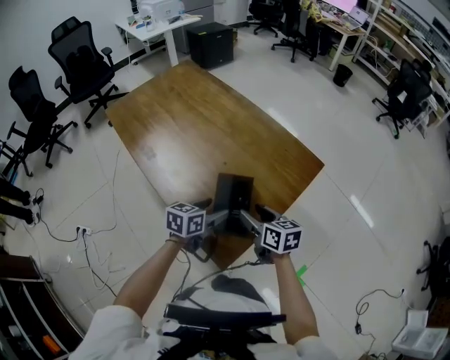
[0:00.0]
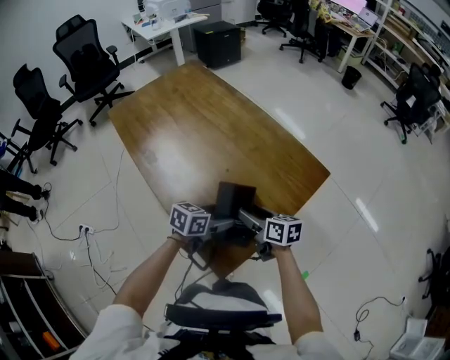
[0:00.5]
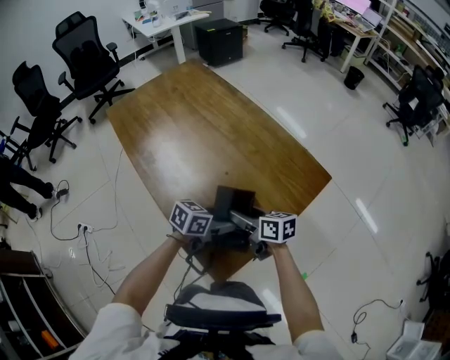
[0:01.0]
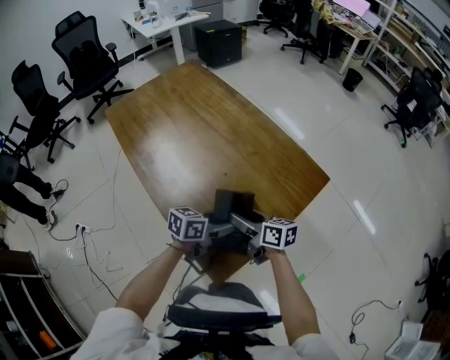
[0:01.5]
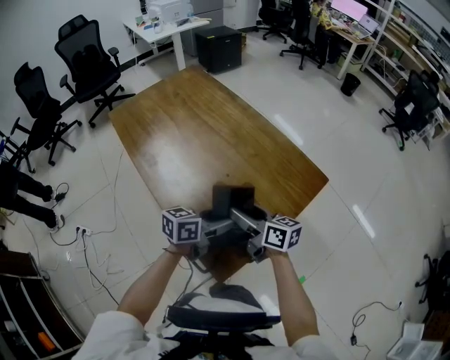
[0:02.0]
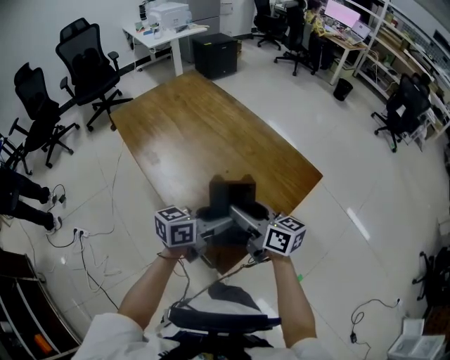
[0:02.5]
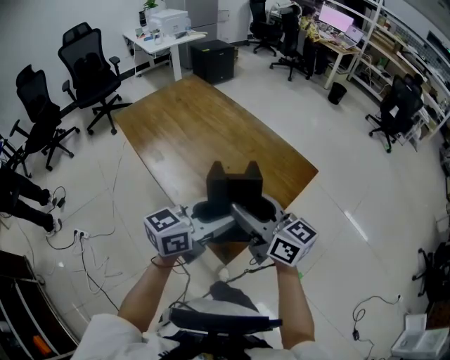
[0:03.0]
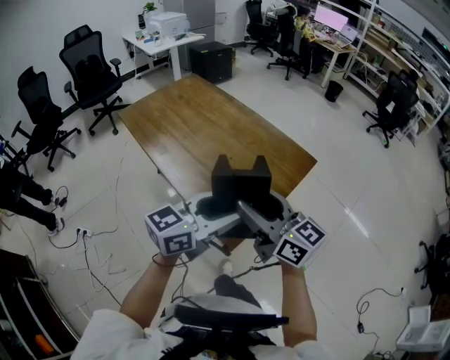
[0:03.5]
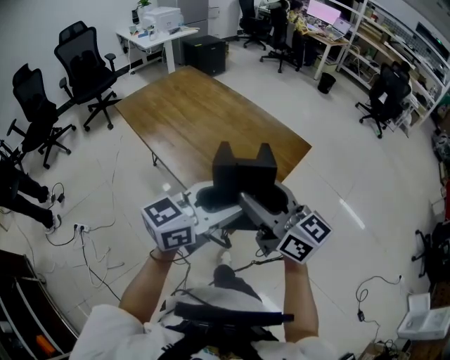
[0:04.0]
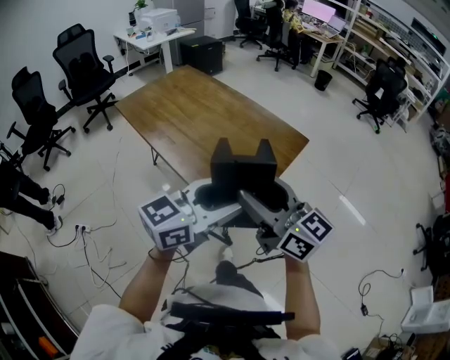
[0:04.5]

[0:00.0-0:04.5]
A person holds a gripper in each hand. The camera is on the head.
0:00.0 to 0:02.0: The left gripper heads upward, covering some 5 cm, while the right gripper ends up about 10 cm from where it was, and swivels roughly 20 degrees.
0:02.0 to 0:04.5: The right gripper goes roughly 30 cm upward and backward, and rotates approximately 40 degrees, while the left gripper moves backward and upward, approximately 30 cm, and rotates some 30 degrees.

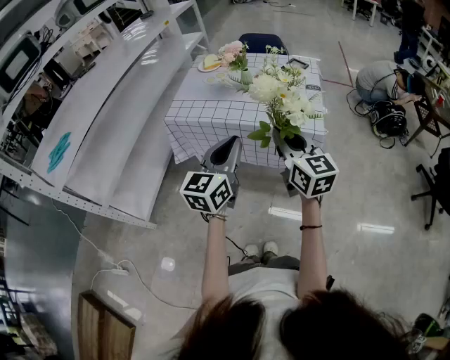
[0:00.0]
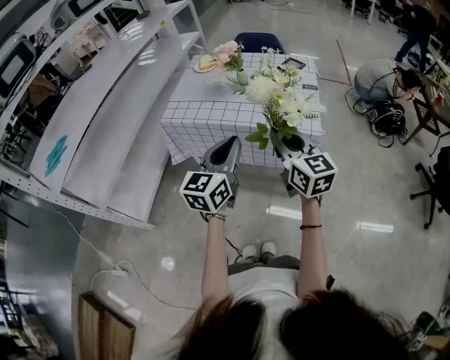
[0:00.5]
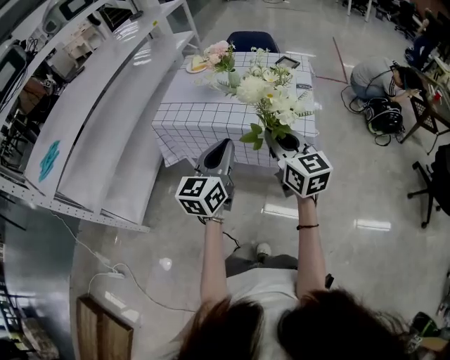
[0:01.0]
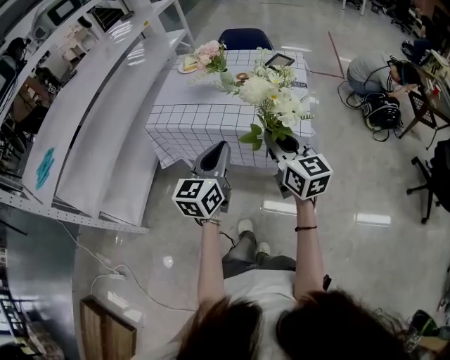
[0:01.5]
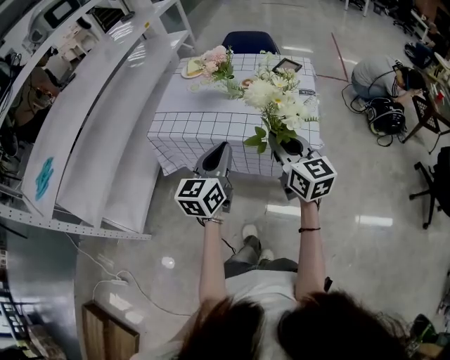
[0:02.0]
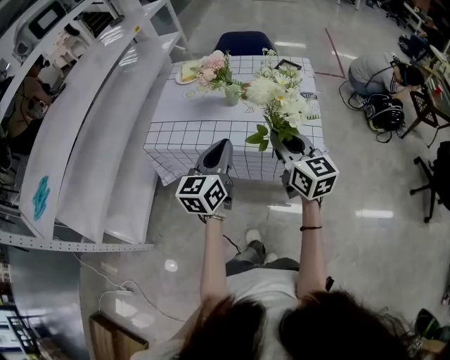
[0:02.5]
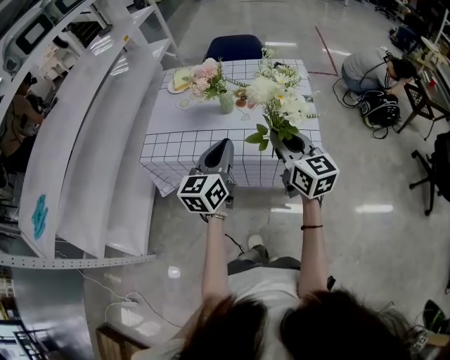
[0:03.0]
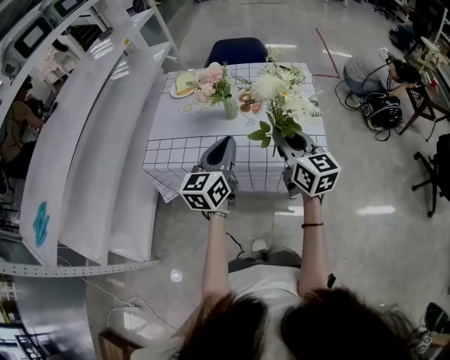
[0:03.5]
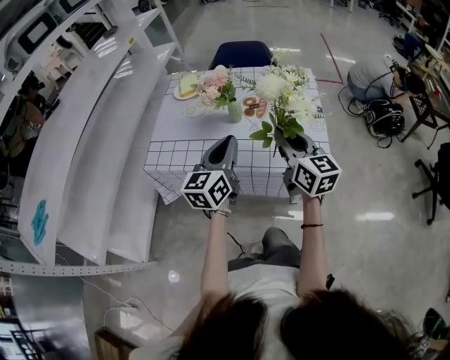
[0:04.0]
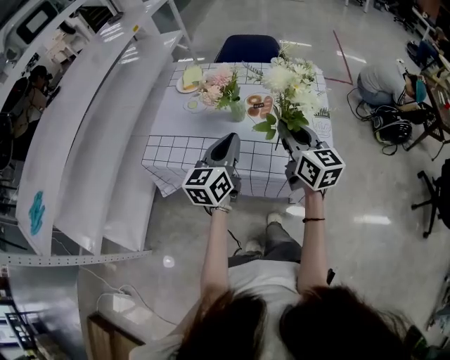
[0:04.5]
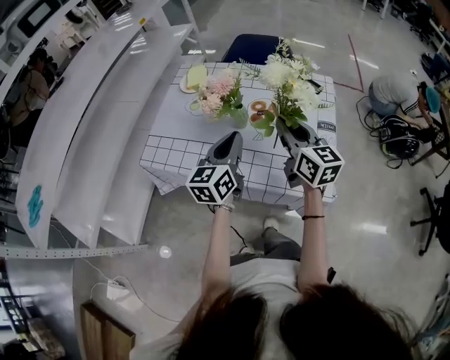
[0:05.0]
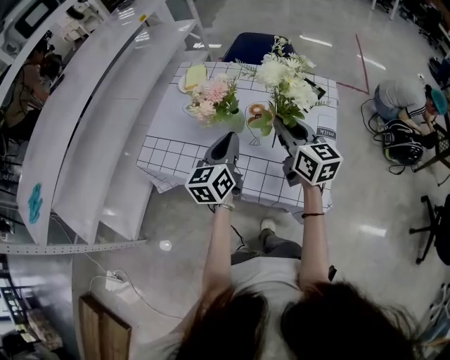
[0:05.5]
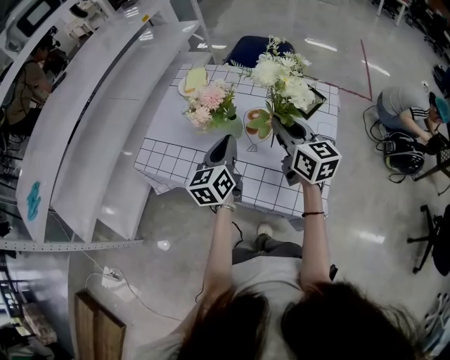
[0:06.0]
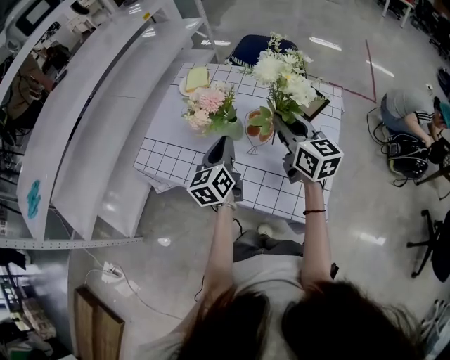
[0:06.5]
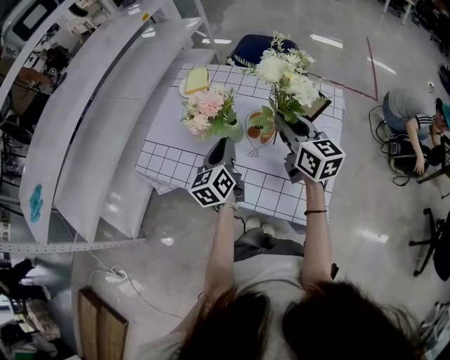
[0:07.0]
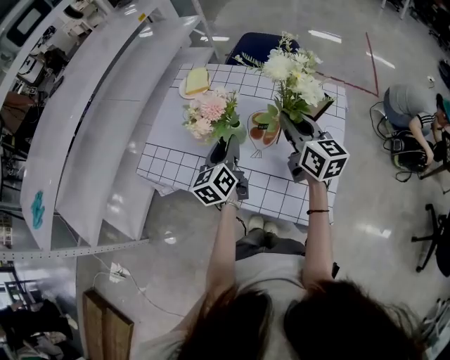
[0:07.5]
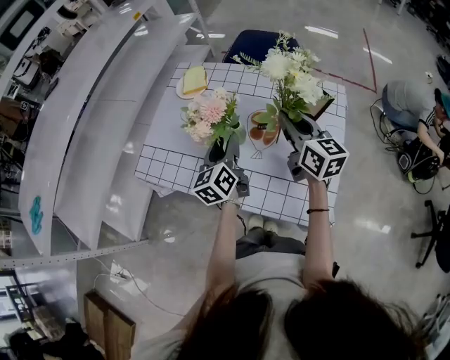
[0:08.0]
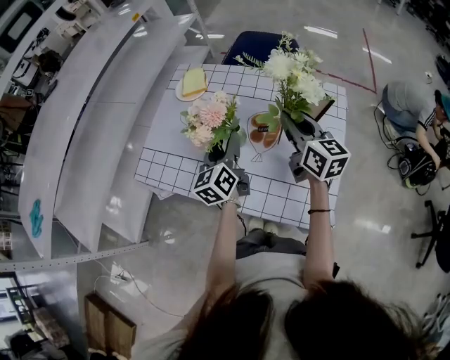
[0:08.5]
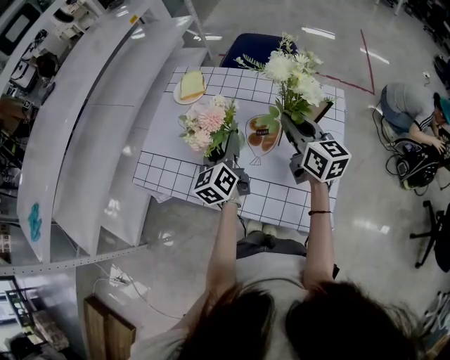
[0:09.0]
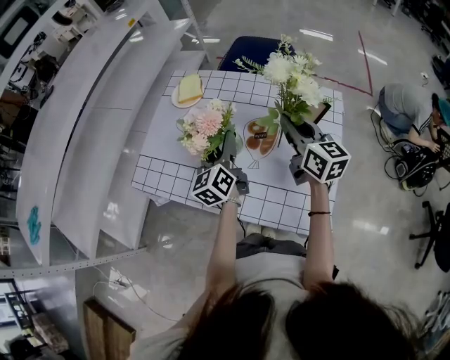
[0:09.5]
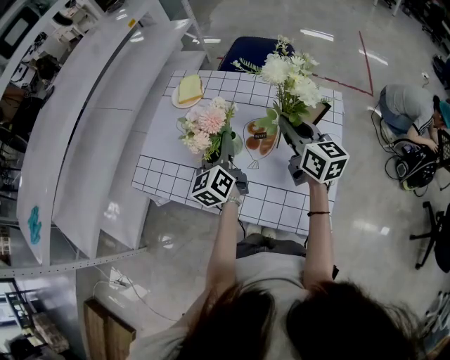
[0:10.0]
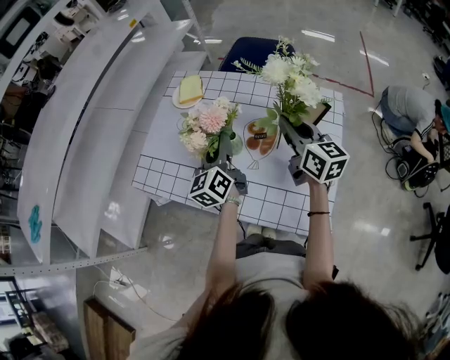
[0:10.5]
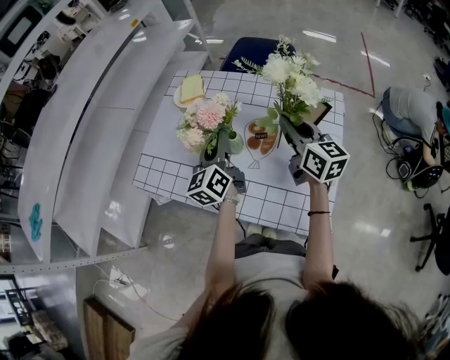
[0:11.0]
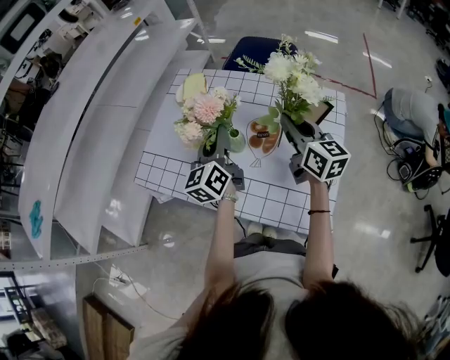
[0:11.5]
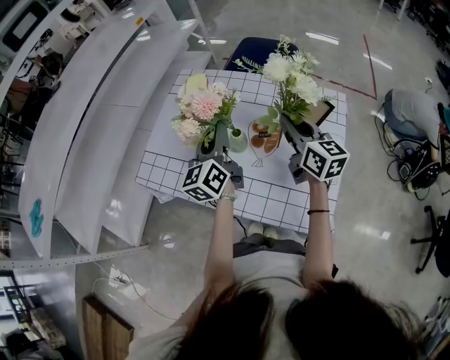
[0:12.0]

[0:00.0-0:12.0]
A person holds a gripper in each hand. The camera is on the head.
0:00.0 to 0:02.0: Both grippers travel together forward, some 10 cm.
0:02.0 to 0:04.0: Both grippers travel together forward, about 15 cm.
0:04.0 to 0:06.0: The right gripper is displaced forward by some 20 cm. The left gripper moves forward and downward, about 15 cm, and changes its angle by about 20 degrees.
0:06.0 to 0:08.0: The grippers both shift forward by approximately 5 cm. The left gripper opens up.
0:08.0 to 0:10.0: There are only small adjustments of the grippers.
0:10.0 to 0:12.0: The left gripper is displaced upward by some 5 cm.

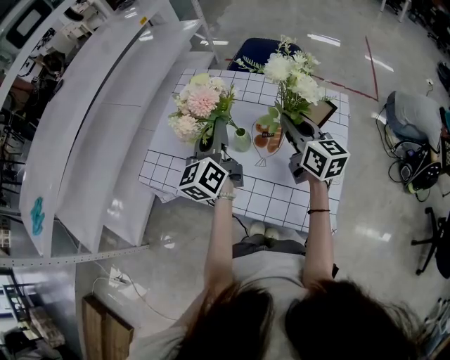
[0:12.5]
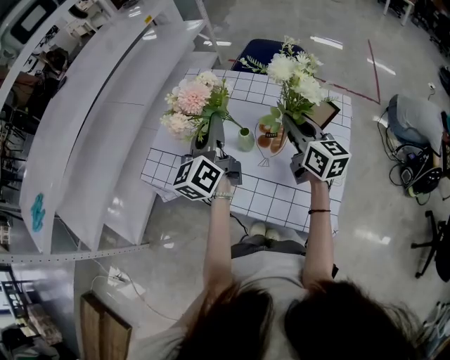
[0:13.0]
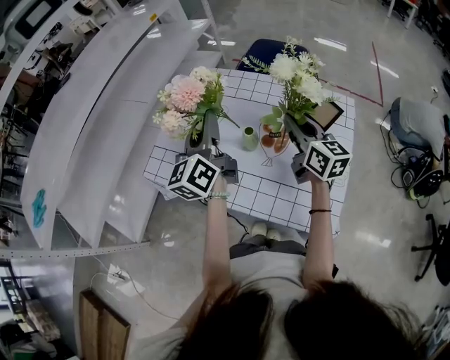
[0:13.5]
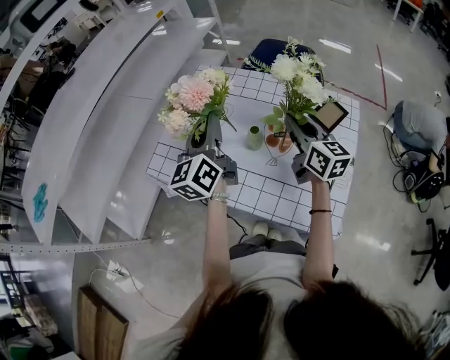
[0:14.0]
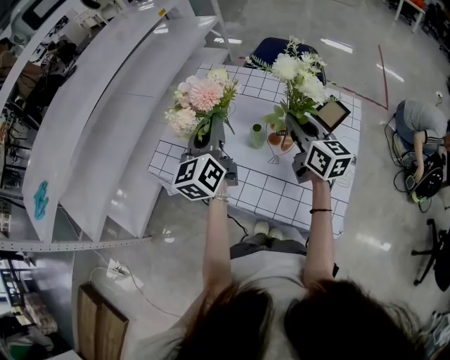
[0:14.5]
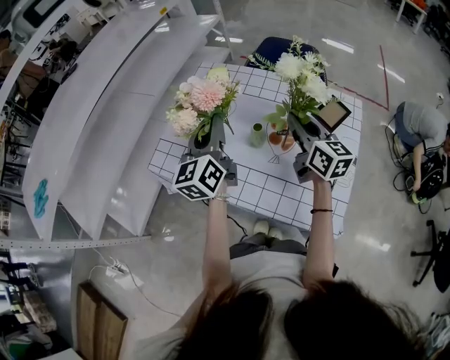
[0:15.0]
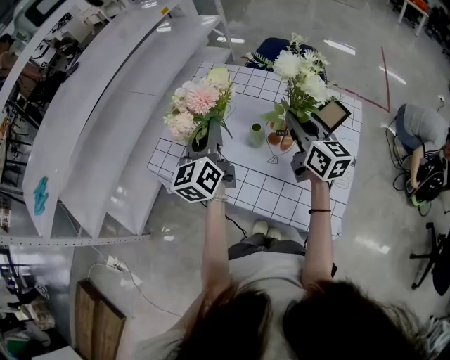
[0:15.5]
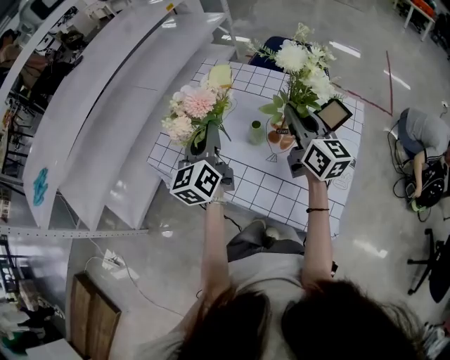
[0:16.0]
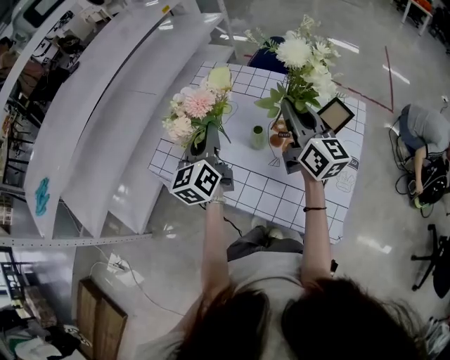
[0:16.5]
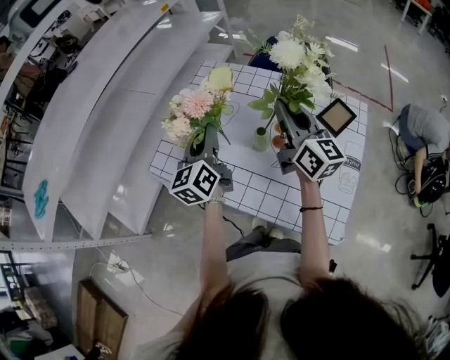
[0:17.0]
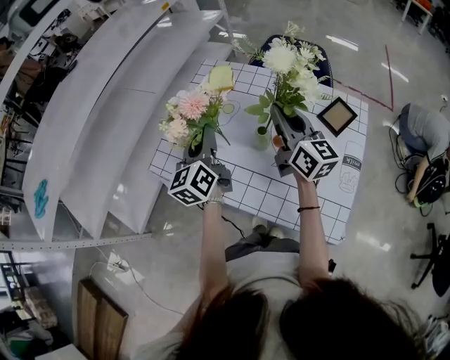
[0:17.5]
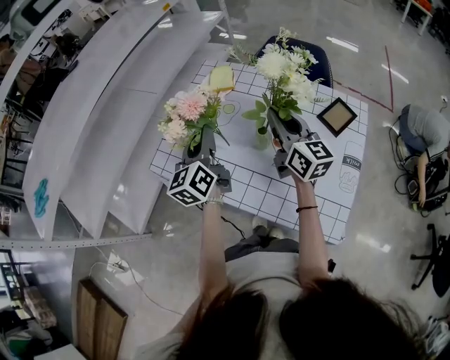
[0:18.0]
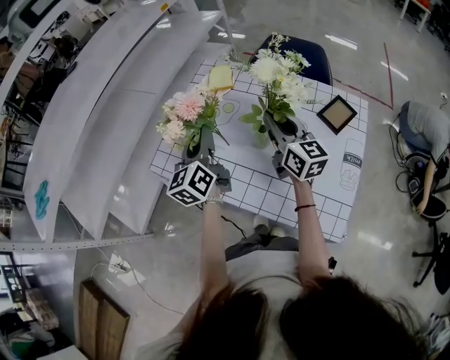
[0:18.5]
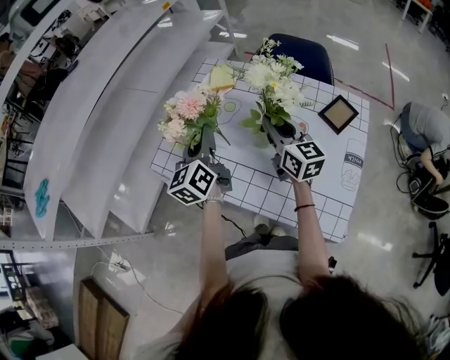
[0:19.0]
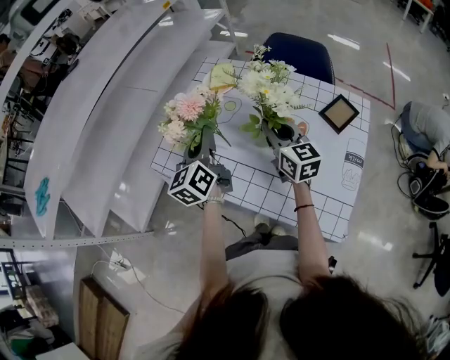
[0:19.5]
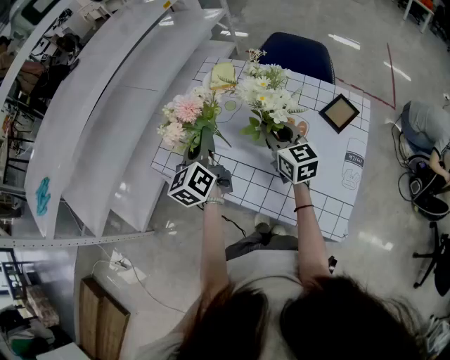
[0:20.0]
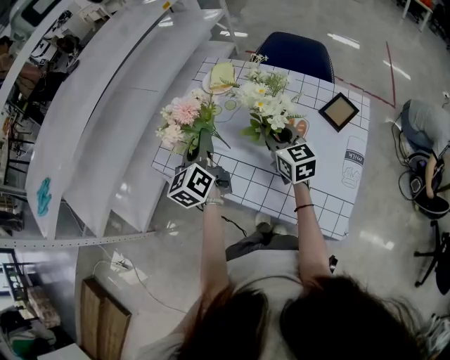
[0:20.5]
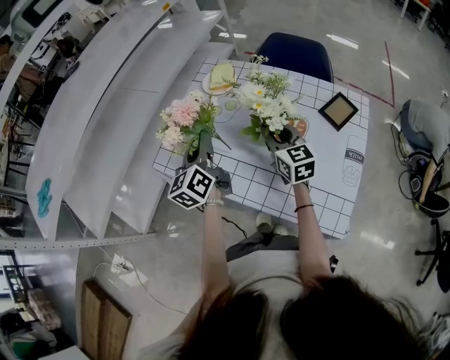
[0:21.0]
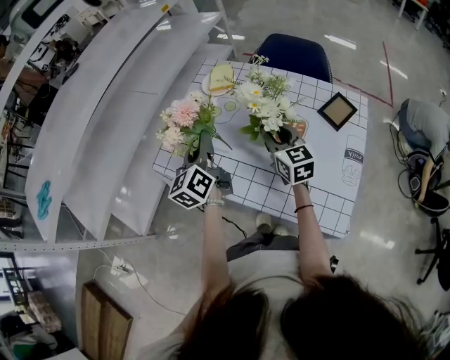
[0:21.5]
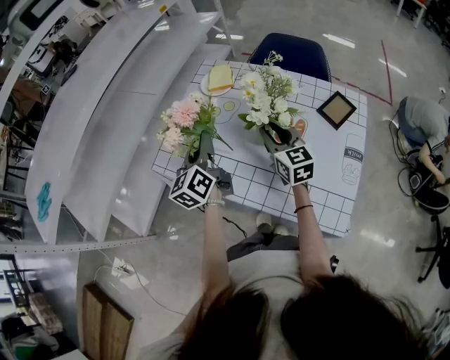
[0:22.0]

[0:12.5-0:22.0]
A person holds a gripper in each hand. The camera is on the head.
0:12.5 to 0:14.5: The left gripper is displaced to the left by some 5 cm.
0:14.5 to 0:16.5: The right gripper is displaced upward by some 5 cm.
0:16.5 to 0:18.0: The right gripper ends up some 5 cm from where it was.
0:18.0 to 0:20.0: The right gripper travels downward by approximately 5 cm.
0:20.0 to 0:22.0: The grippers move only a little.

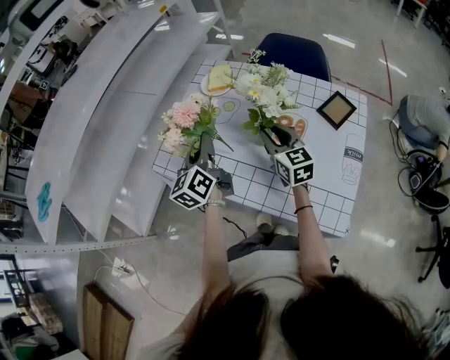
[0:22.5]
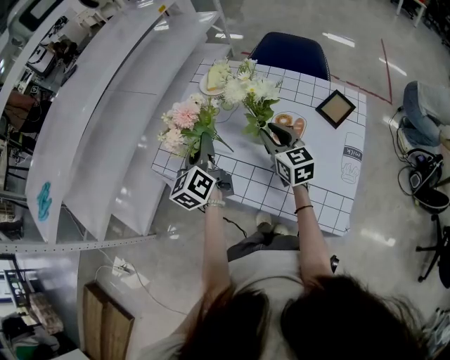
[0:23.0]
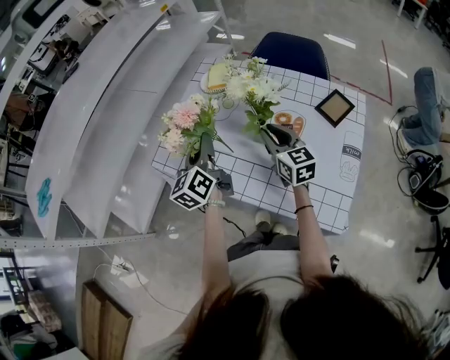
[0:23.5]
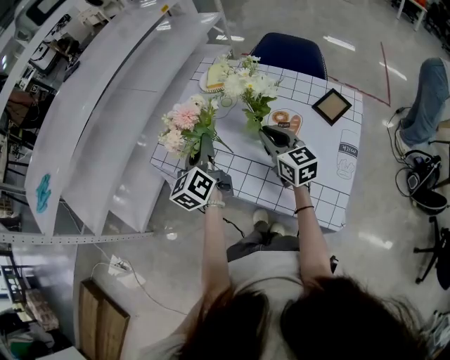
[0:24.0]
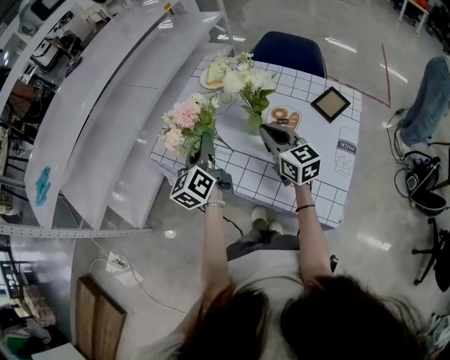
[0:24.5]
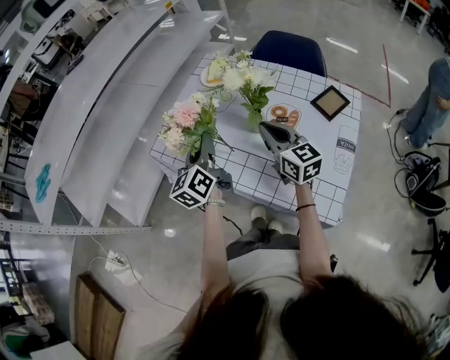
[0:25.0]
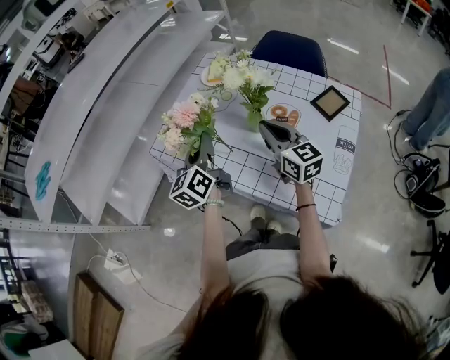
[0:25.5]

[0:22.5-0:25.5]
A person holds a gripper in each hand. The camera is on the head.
0:22.5 to 0:24.0: The grippers make only small movements.
0:24.0 to 0:25.5: The grippers make only small movements.
